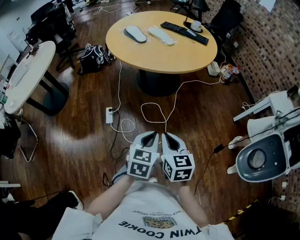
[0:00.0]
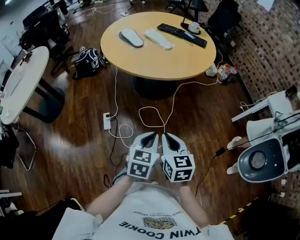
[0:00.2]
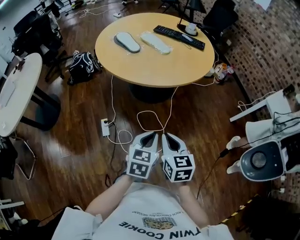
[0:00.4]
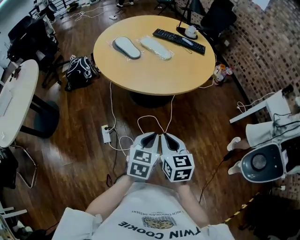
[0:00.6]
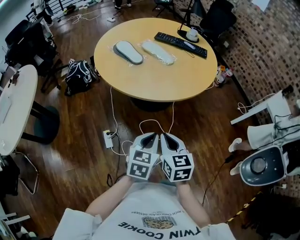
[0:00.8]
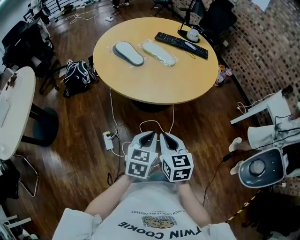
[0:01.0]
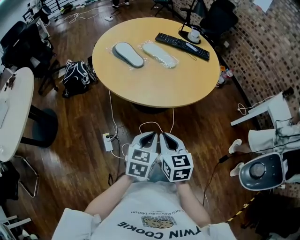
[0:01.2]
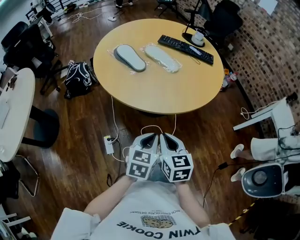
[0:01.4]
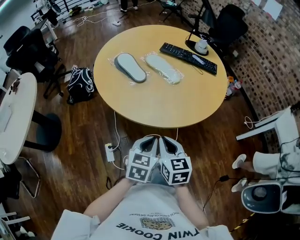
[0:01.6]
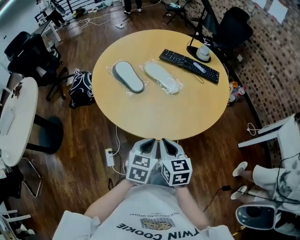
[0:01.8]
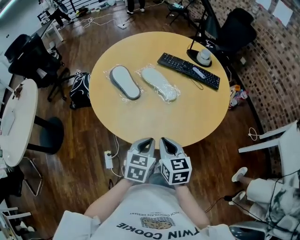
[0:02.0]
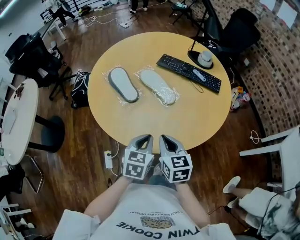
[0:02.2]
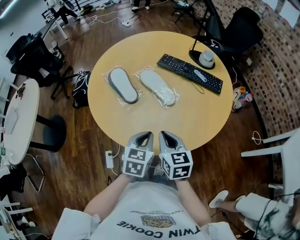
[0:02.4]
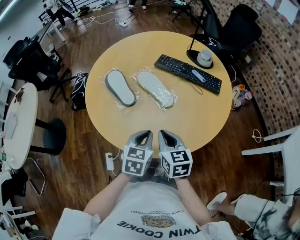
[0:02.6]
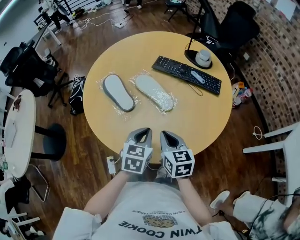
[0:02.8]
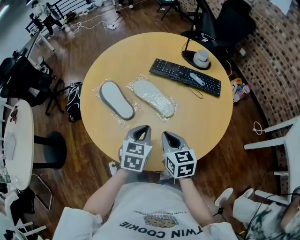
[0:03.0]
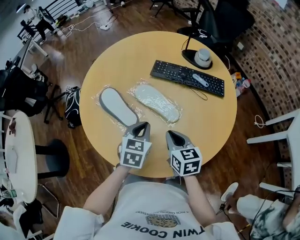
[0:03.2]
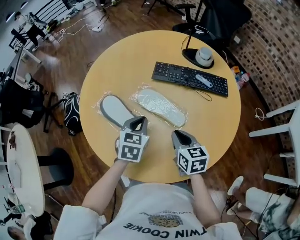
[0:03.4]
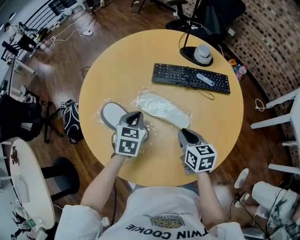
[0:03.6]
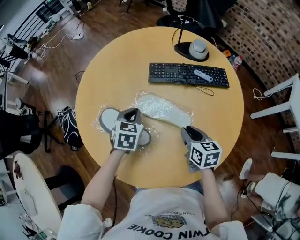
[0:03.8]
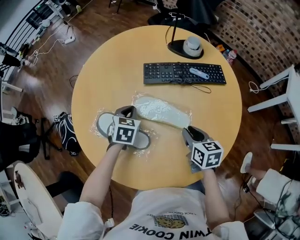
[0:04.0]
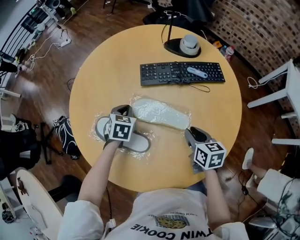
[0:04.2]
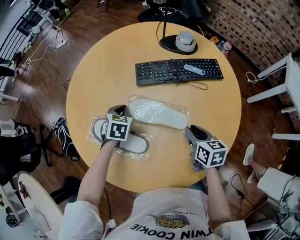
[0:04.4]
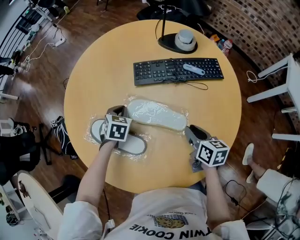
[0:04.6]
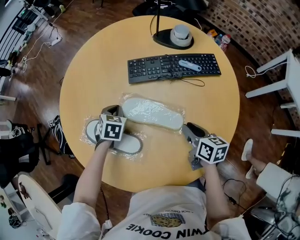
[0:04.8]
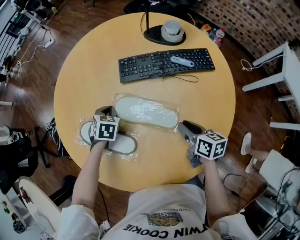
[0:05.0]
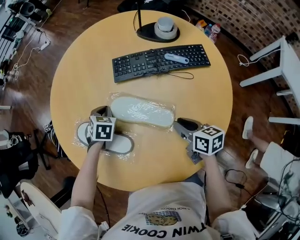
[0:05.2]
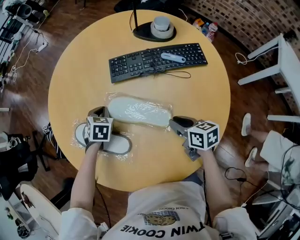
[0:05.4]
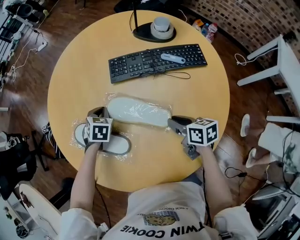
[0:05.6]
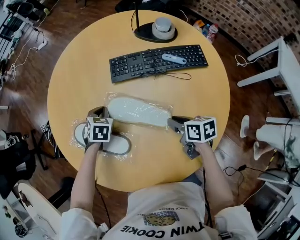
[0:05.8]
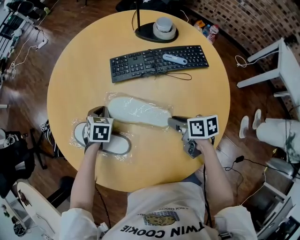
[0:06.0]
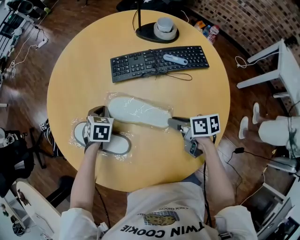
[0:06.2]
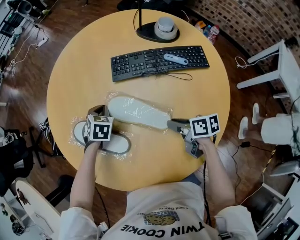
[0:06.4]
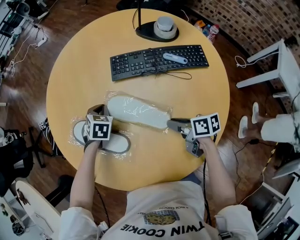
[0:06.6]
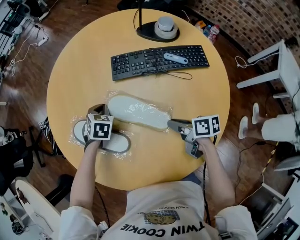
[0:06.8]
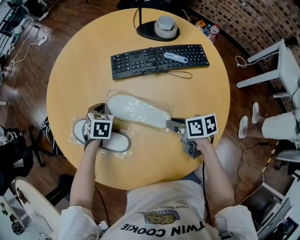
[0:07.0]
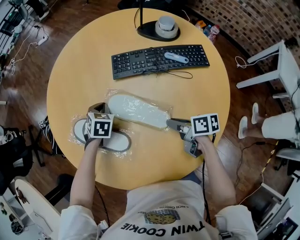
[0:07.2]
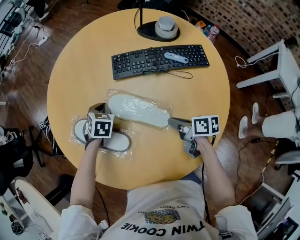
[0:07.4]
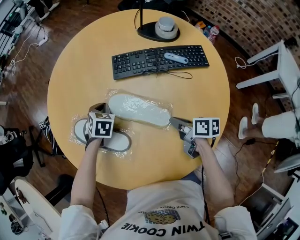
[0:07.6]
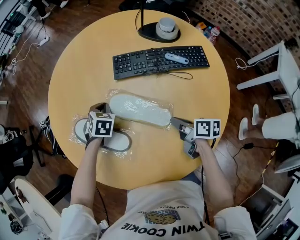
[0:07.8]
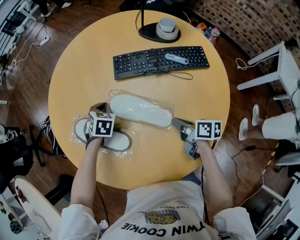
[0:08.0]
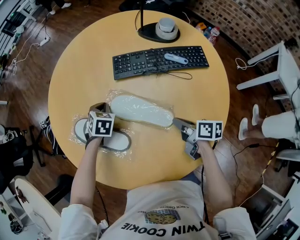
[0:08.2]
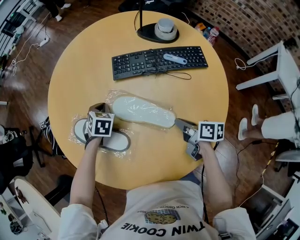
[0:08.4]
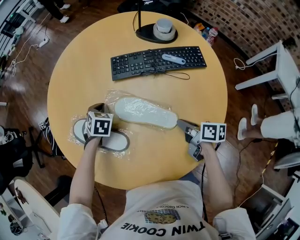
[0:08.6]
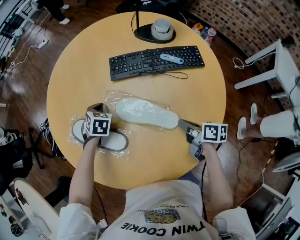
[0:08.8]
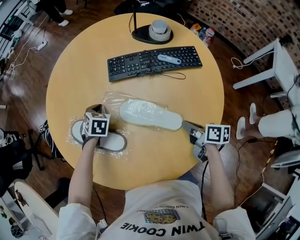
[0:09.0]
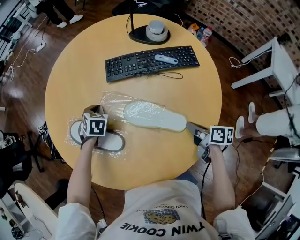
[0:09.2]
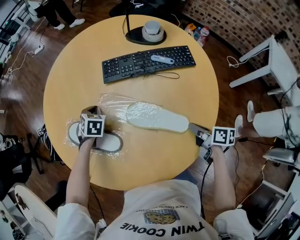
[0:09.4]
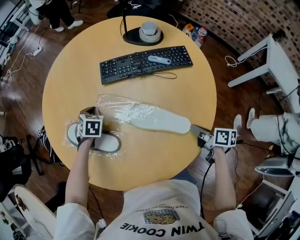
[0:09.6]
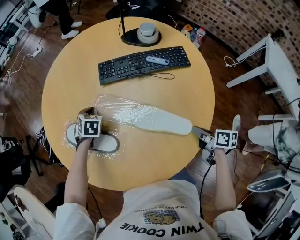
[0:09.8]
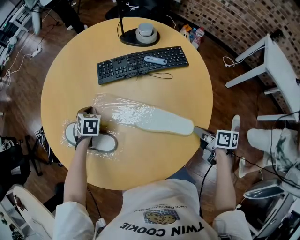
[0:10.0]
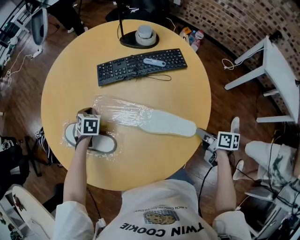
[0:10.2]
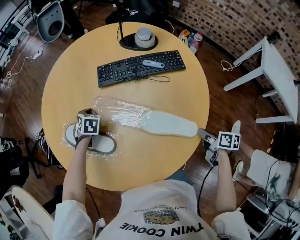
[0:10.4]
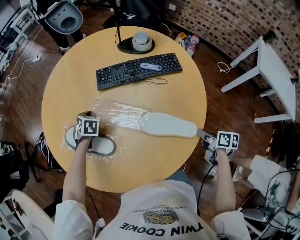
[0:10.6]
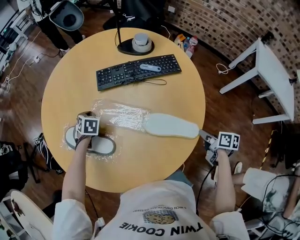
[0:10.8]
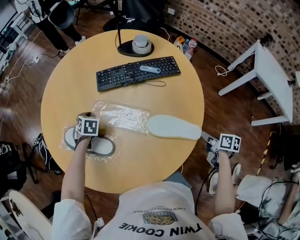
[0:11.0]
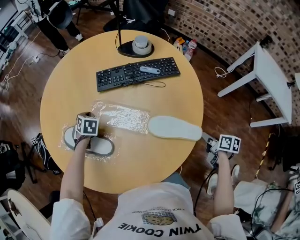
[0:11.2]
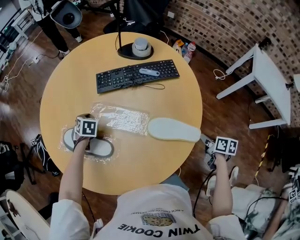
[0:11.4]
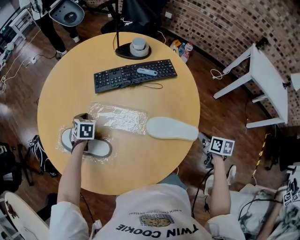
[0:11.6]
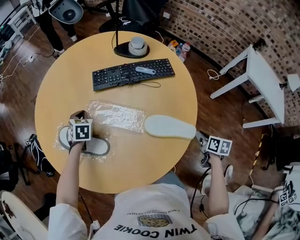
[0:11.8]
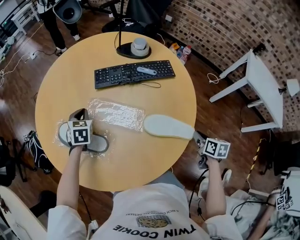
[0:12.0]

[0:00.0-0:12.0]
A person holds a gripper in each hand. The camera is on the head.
0:00.0 to 0:01.6: The right gripper goes roughly 35 cm forward and to the left; the left gripper travels forward by approximately 35 cm.
0:01.6 to 0:03.0: The grippers both shift forward by roughly 25 cm.
0:03.0 to 0:04.4: The right gripper goes roughly 10 cm forward and downward, and changes its angle by approximately 30 degrees. The left gripper travels forward and to the left by about 30 cm, and turns by about 30 degrees.
0:04.4 to 0:06.0: The right gripper goes some 5 cm downward, and turns by approximately 30 degrees.
0:06.0 to 0:07.6: The grippers make only small movements.
0:07.6 to 0:09.0: The right gripper is displaced backward and to the right by approximately 10 cm.
0:09.0 to 0:10.4: The right gripper goes approximately 15 cm backward and to the right.
0:10.4 to 0:12.0: The right gripper changes place by some 5 cm, and turns by some 30 degrees. Meanwhile the left gripper goes approximately 10 cm upward.

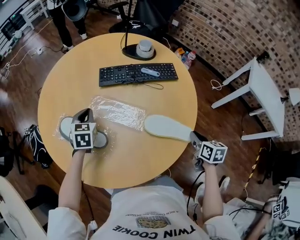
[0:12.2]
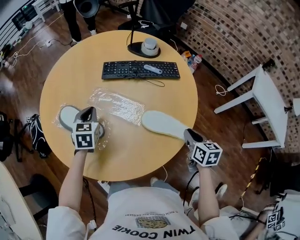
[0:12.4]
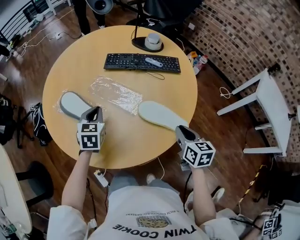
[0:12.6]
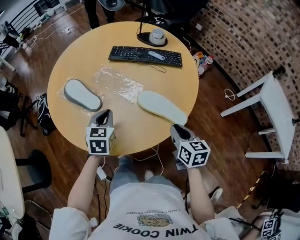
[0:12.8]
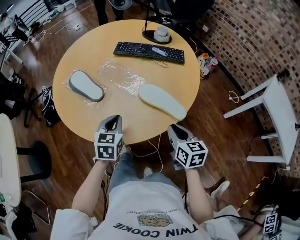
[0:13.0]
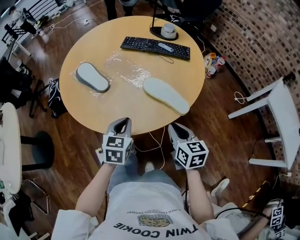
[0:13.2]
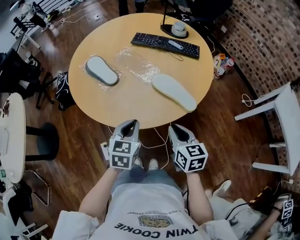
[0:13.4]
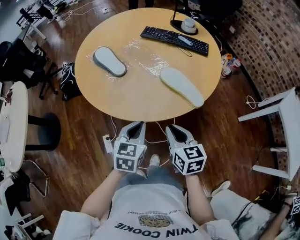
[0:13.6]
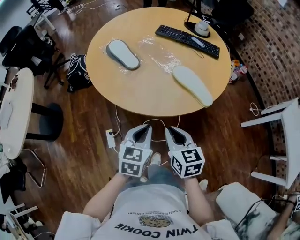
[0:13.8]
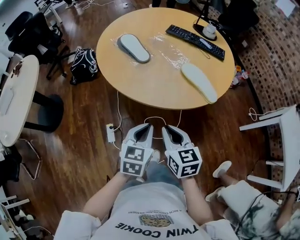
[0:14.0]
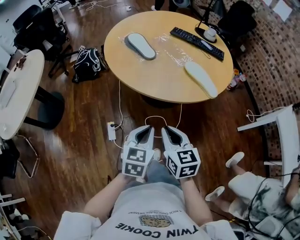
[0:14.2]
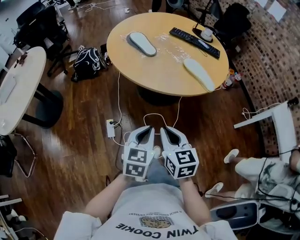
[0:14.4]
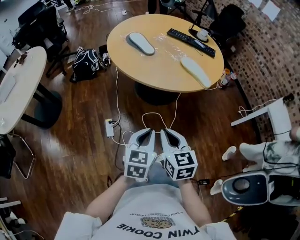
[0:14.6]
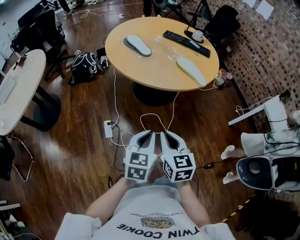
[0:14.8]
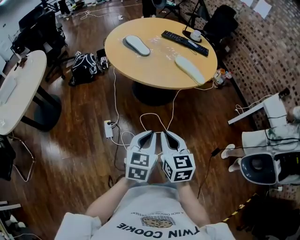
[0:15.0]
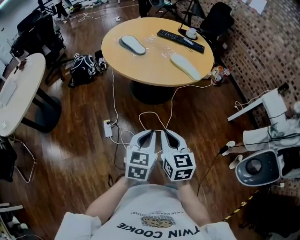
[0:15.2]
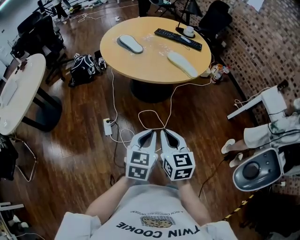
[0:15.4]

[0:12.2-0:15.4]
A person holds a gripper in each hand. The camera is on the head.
0:12.2 to 0:13.8: The right gripper shifts approximately 30 cm to the left and backward, and swivels about 50 degrees, while the left gripper travels backward by about 50 cm, and turns by some 20 degrees.
0:13.8 to 0:15.4: The grippers both shift backward by some 30 cm.

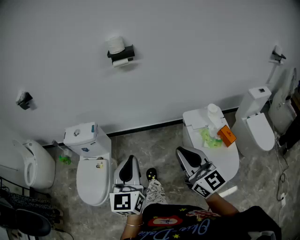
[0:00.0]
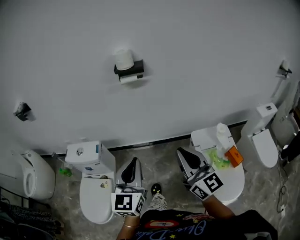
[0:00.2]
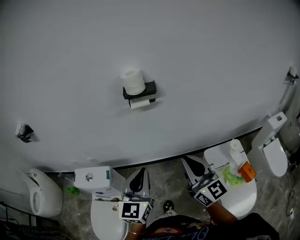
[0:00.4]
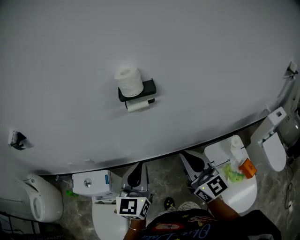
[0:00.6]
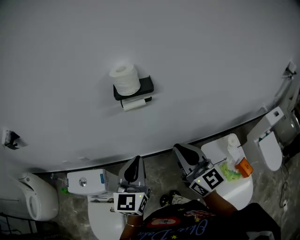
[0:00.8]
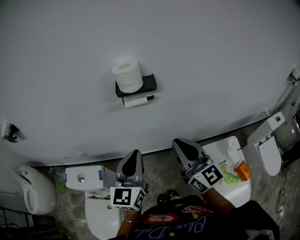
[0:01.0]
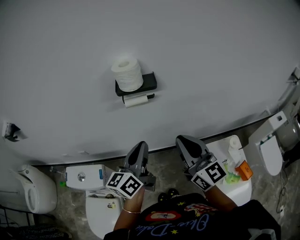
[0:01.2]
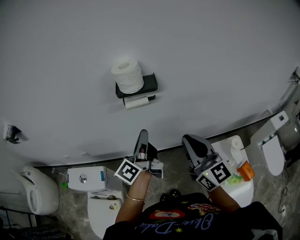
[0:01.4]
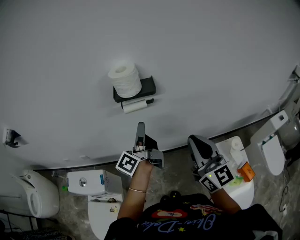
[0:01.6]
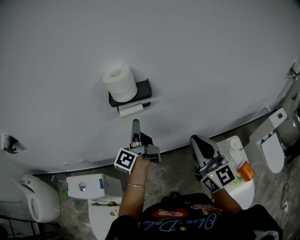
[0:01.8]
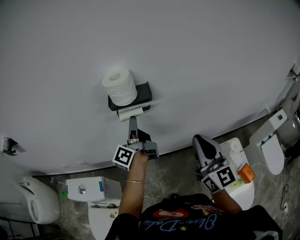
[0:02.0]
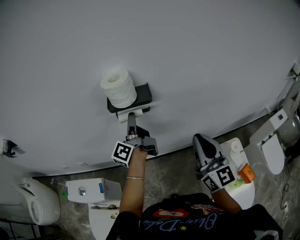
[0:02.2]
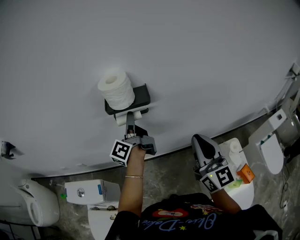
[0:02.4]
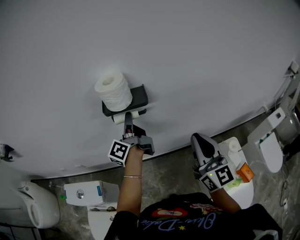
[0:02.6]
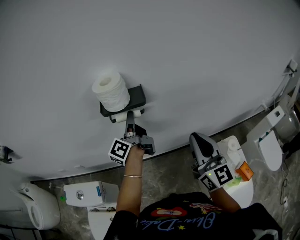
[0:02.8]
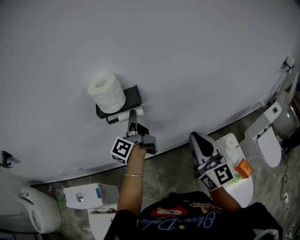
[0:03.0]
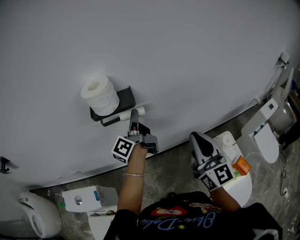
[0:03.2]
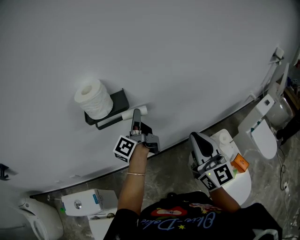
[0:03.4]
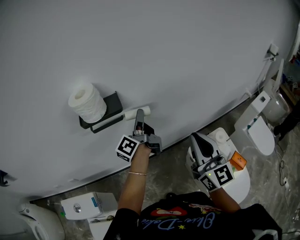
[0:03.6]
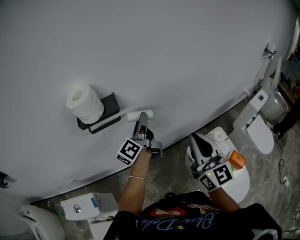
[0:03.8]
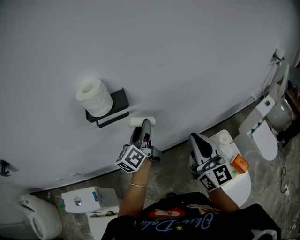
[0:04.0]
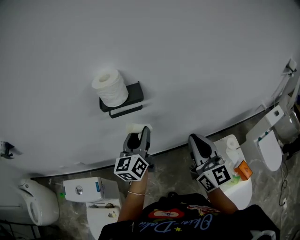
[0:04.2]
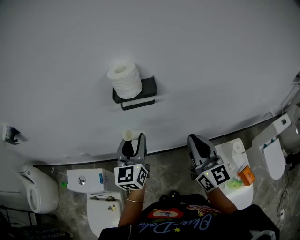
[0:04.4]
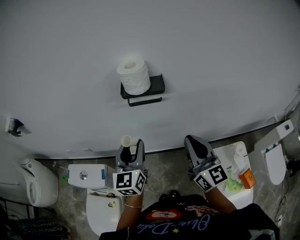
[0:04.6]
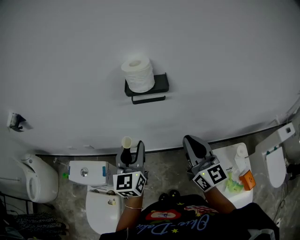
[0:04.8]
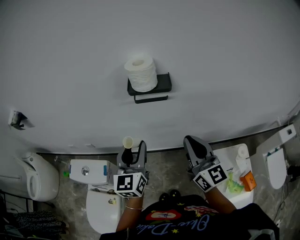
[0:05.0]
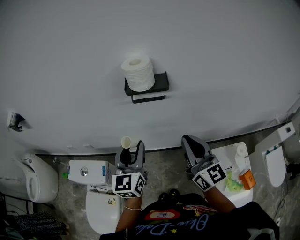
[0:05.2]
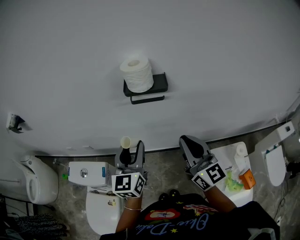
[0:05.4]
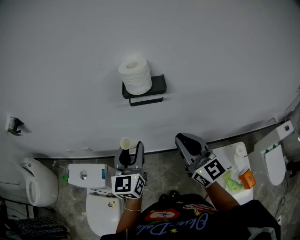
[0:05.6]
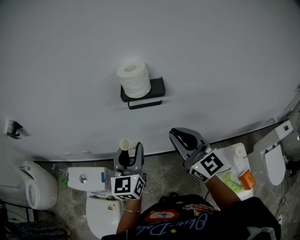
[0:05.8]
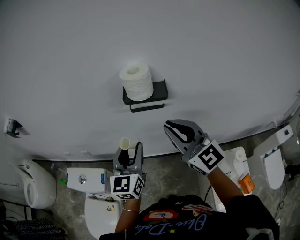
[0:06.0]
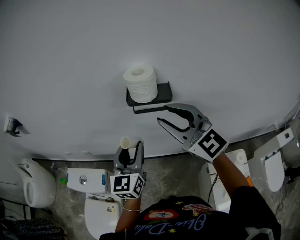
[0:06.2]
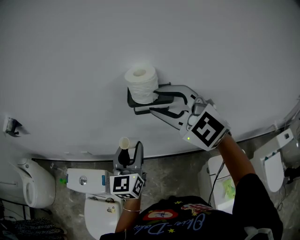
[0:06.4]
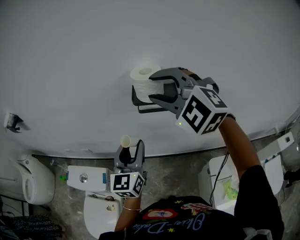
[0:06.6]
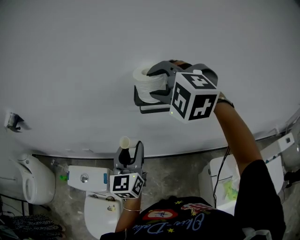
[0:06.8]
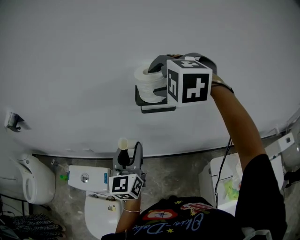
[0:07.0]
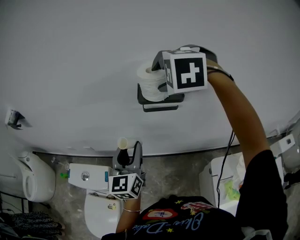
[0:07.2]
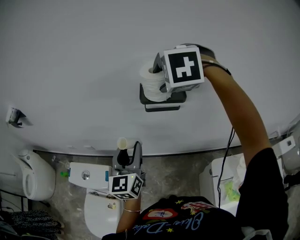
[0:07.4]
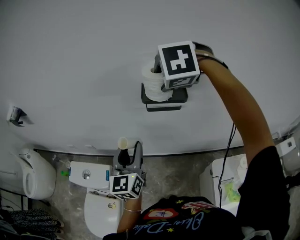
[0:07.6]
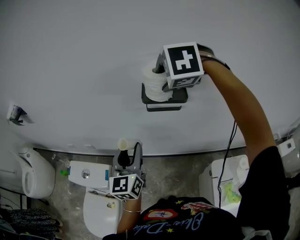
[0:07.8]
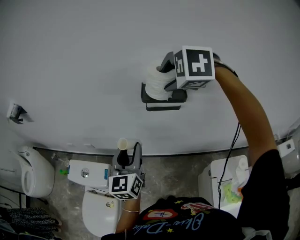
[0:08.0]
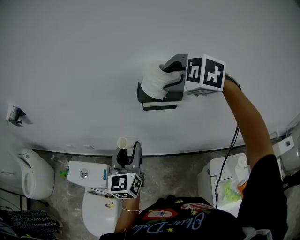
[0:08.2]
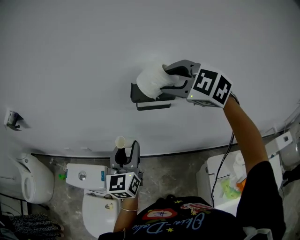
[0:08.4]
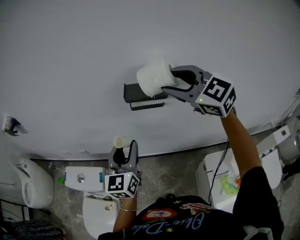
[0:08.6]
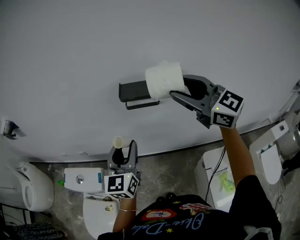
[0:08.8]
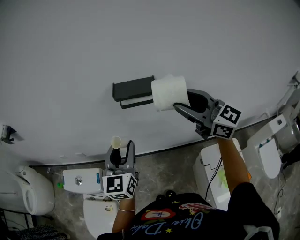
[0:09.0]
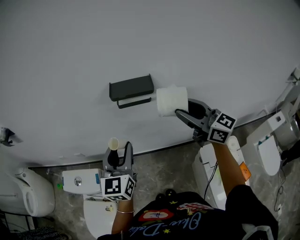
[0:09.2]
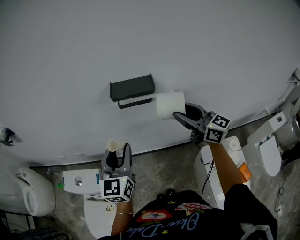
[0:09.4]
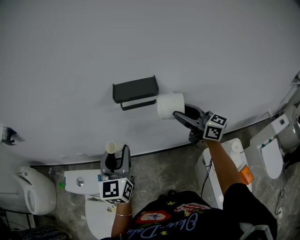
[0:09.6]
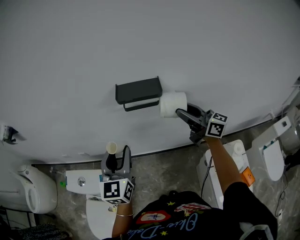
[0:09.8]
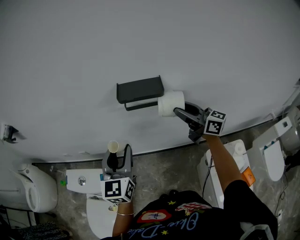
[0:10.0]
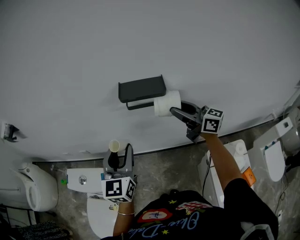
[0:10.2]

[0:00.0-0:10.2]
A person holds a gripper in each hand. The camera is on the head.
0:00.0 to 0:01.4: The two grippers travel together, forward, approximately 40 cm. The left gripper rolls counterclockwise, seen from behind, by about 60 degrees.
0:01.4 to 0:03.0: The left gripper moves forward, approximately 15 cm, and opens. Meanwhile the right gripper heads to the right, covering some 10 cm.
0:03.0 to 0:04.4: The left gripper shifts roughly 15 cm backward, and twists approximately 70 degrees clockwise, seen from behind.
0:04.4 to 0:05.8: The right gripper is displaced to the left by about 10 cm, and rotates roughly 20 degrees. The left gripper changes place by roughly 5 cm.
0:05.8 to 0:07.2: The left gripper shifts by about 5 cm; the right gripper shifts about 20 cm forward and upward, points its fingers about 60 degrees further downward, and opens its fingers.
0:07.2 to 0:08.8: The right gripper shifts approximately 15 cm backward and to the right, and angles its fingers upward, by roughly 60 degrees.
0:08.8 to 0:10.2: The right gripper shifts about 15 cm downward, and turns by roughly 40 degrees.
